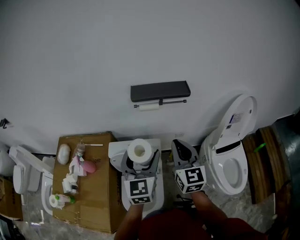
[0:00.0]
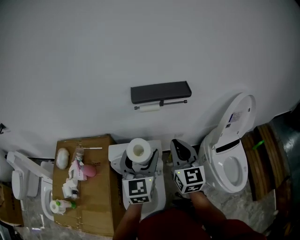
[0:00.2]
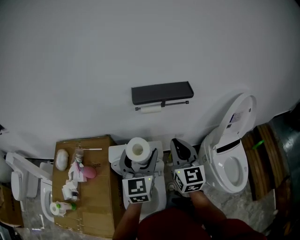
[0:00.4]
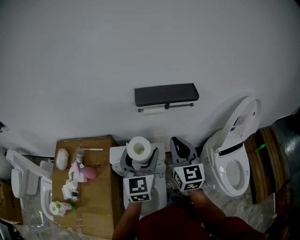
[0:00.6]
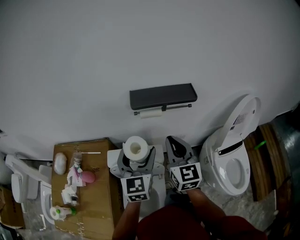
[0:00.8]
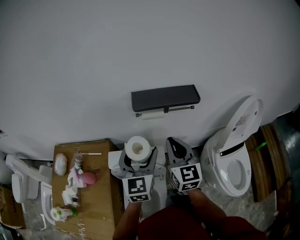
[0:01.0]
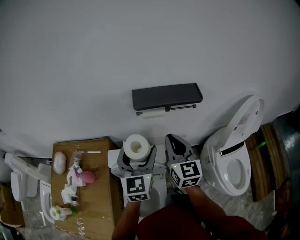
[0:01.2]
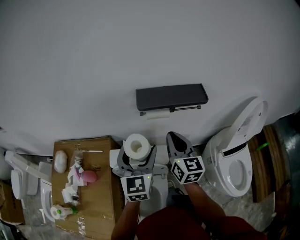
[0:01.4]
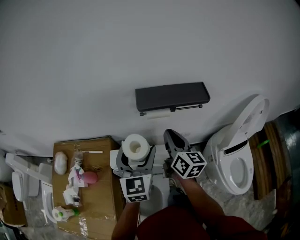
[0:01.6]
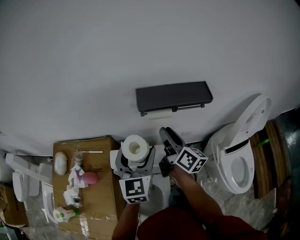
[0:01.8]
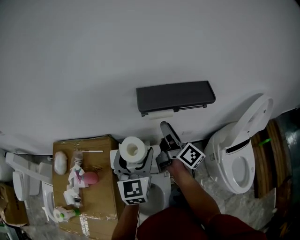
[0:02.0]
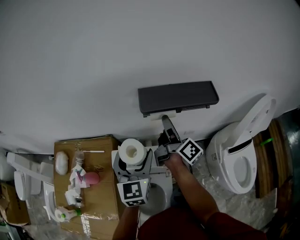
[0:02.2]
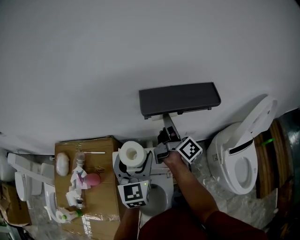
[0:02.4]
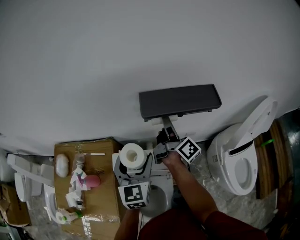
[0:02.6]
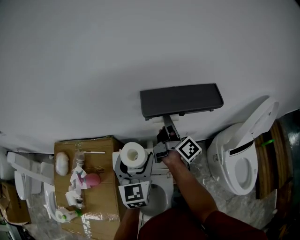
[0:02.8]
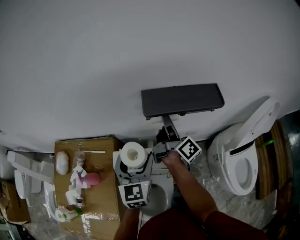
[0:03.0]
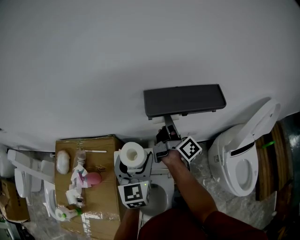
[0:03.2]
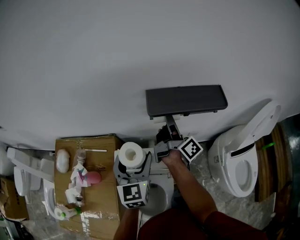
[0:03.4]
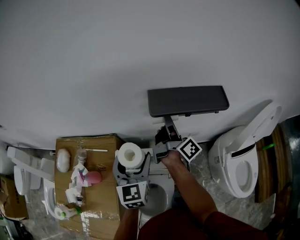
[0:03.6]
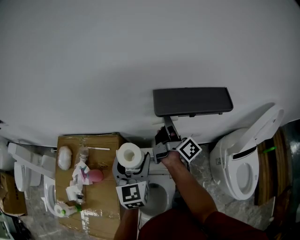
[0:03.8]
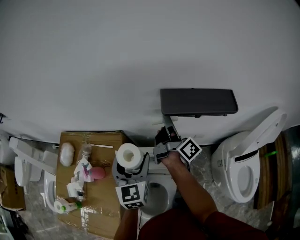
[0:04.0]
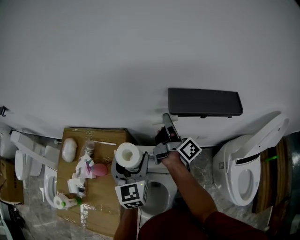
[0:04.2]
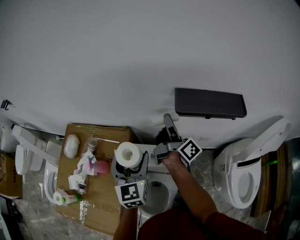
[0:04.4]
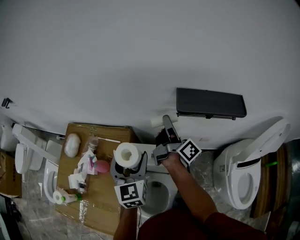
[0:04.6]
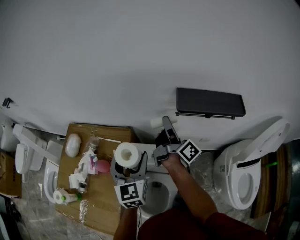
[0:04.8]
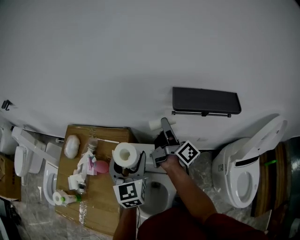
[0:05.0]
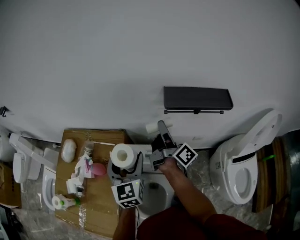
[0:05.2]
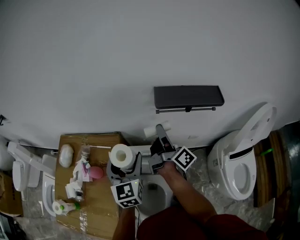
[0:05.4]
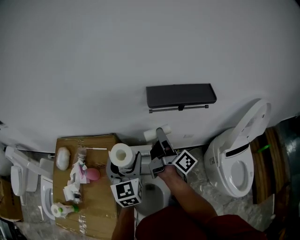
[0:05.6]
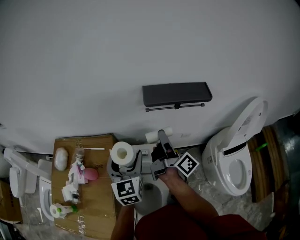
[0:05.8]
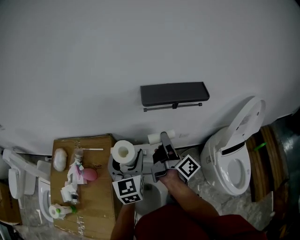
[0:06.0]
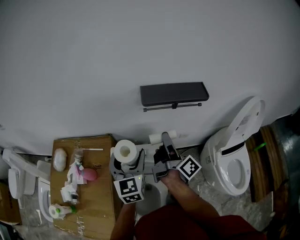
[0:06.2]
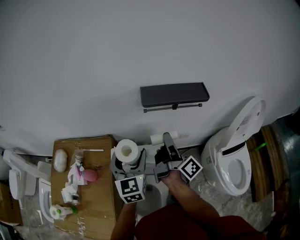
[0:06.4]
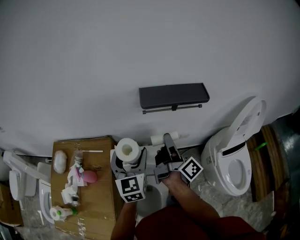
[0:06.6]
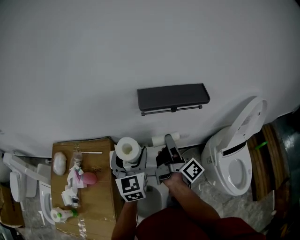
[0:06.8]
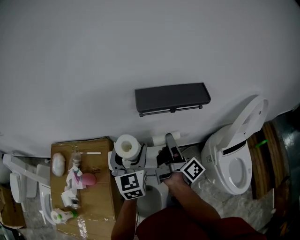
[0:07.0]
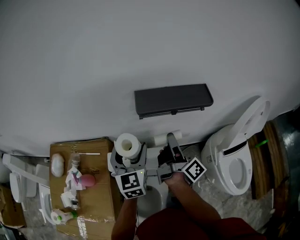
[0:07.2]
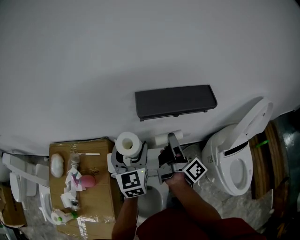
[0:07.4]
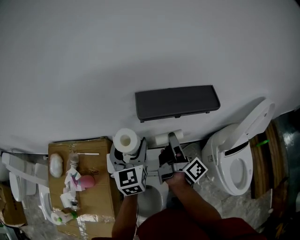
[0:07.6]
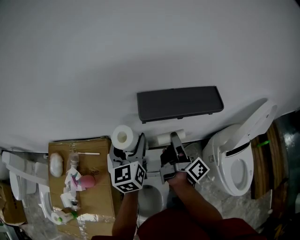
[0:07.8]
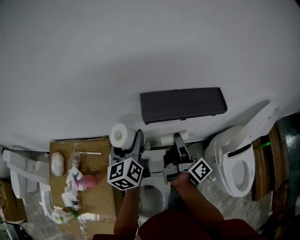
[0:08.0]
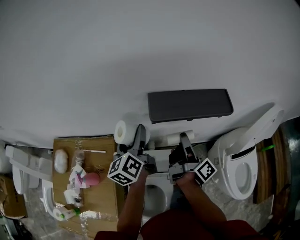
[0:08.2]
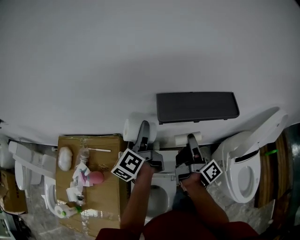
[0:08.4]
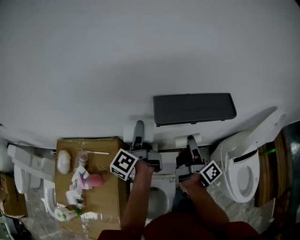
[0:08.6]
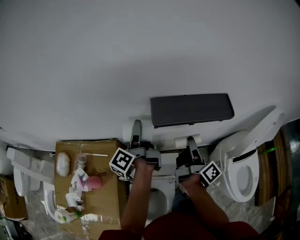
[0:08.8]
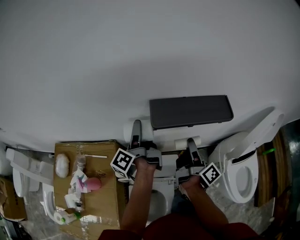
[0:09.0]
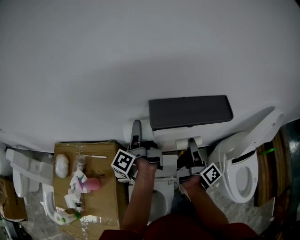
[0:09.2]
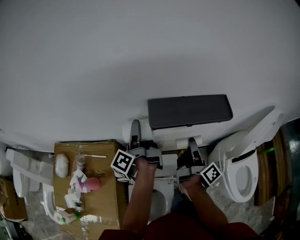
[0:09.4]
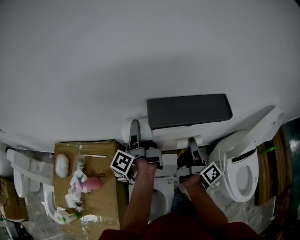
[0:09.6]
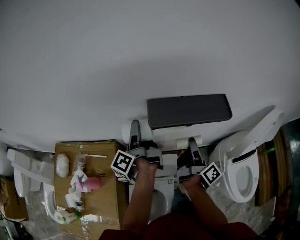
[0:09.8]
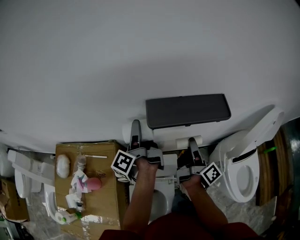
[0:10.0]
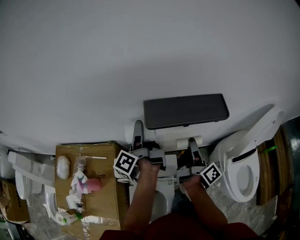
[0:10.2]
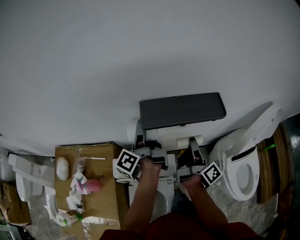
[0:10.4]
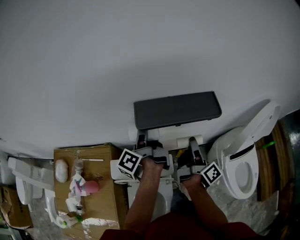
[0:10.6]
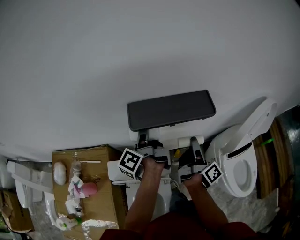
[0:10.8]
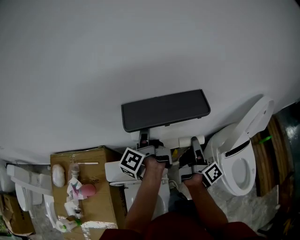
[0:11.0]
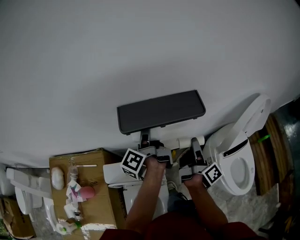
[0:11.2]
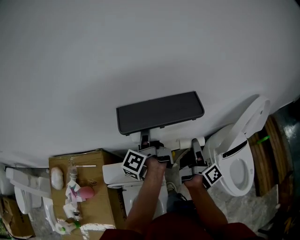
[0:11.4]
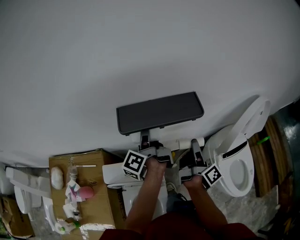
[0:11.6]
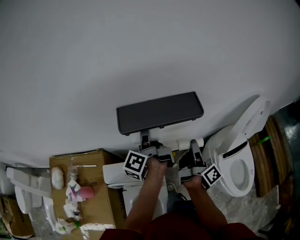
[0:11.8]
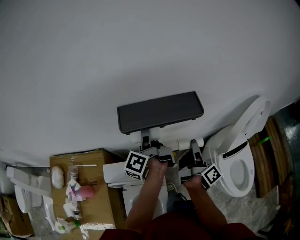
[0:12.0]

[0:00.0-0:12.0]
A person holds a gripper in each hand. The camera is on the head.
0:00.0 to 0:01.6: The left gripper shifts approximately 15 cm forward and to the left. Meanwhile the right gripper is displaced forward and downward by roughly 20 cm, and changes its angle by some 30 degrees.
0:01.6 to 0:03.0: The left gripper changes place by approximately 5 cm, while the right gripper heads forward, covering roughly 10 cm, twists roughly 40 degrees clockwise, seen from behind, and opens its fingers.
0:03.0 to 0:04.4: The two grippers go approximately 10 cm to the left.
0:04.4 to 0:06.0: The left gripper goes approximately 5 cm to the right, while the right gripper moves backward and to the right, about 15 cm.
0:06.0 to 0:07.6: The right gripper is displaced forward by about 10 cm. The left gripper goes roughly 15 cm forward.
0:07.6 to 0:09.0: The left gripper heads forward, covering some 10 cm, and rotates around the line of its fingers by approximately 90 degrees, counterclockwise from behind.
0:09.0 to 0:10.4: The left gripper ends up roughly 5 cm from where it was.
0:10.4 to 0:12.0: The two grippers go roughly 10 cm to the right.

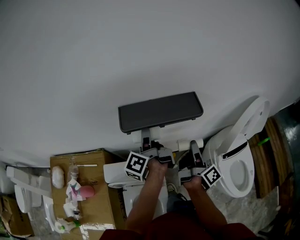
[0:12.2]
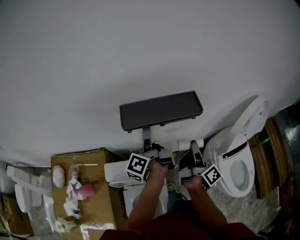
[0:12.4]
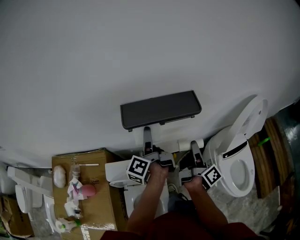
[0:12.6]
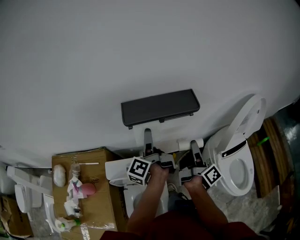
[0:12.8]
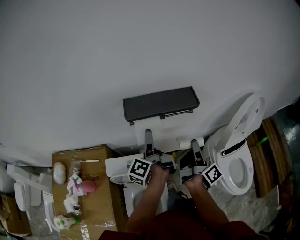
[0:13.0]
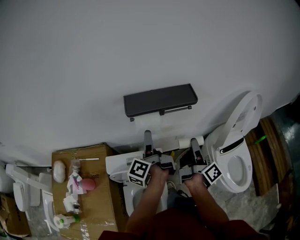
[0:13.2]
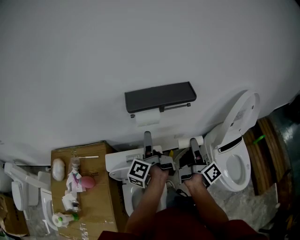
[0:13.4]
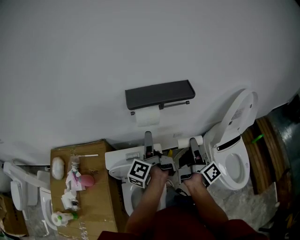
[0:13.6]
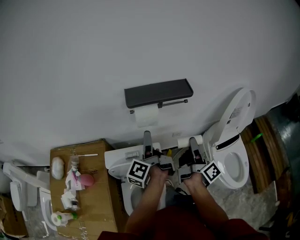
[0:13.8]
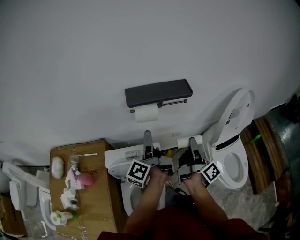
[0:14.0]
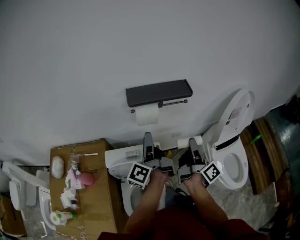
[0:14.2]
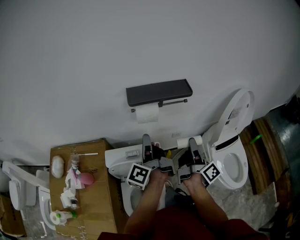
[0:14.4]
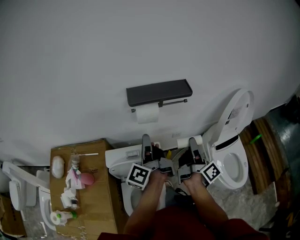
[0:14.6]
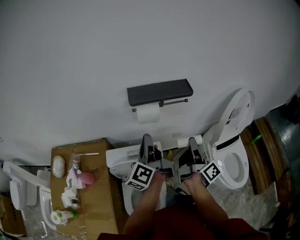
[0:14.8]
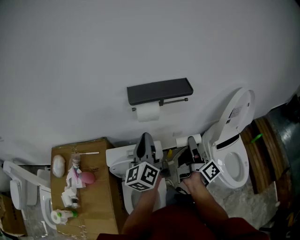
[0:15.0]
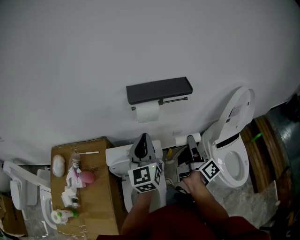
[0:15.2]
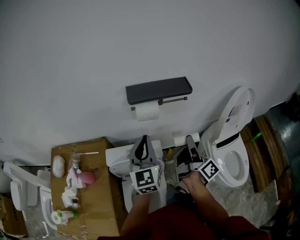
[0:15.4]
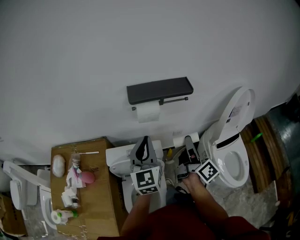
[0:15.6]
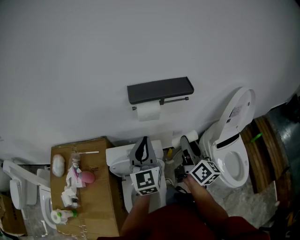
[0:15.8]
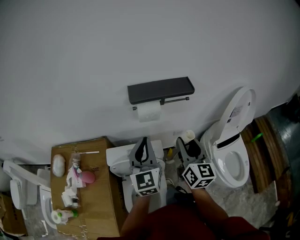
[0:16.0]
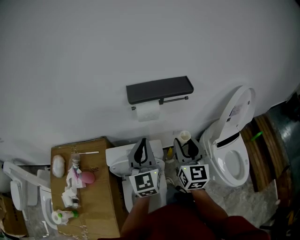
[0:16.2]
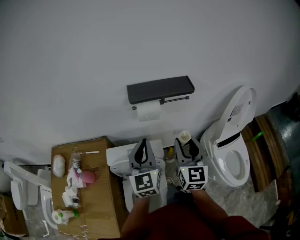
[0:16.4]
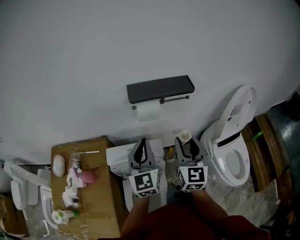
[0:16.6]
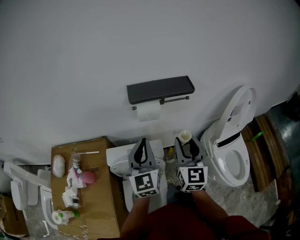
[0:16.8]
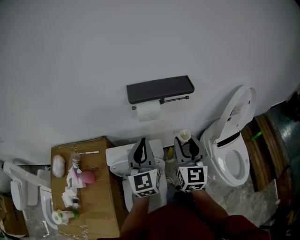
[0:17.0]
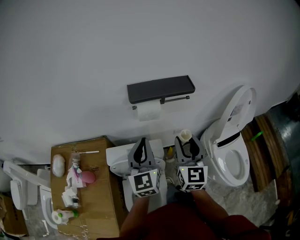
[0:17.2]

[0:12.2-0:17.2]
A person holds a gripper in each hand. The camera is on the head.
0:12.2 to 0:13.8: Both grippers travel together backward, about 15 cm.
0:13.8 to 0:15.6: The left gripper heads upward and backward, covering about 10 cm, rotates around the line of its fingers by approximately 80 degrees, clockwise from behind, and closes its fingers.
0:15.6 to 0:17.2: The right gripper changes place by about 5 cm, and rotates around the line of its fingers by about 70 degrees, counterclockwise from behind.

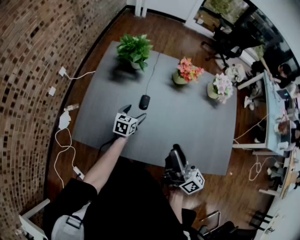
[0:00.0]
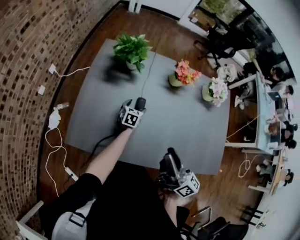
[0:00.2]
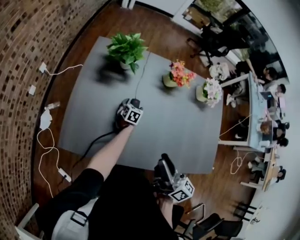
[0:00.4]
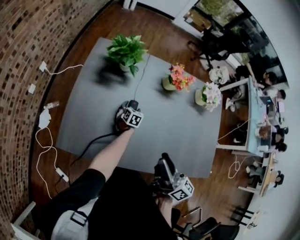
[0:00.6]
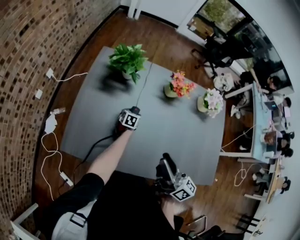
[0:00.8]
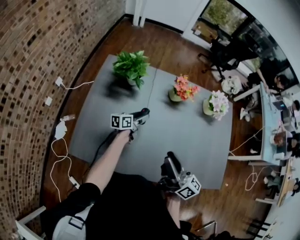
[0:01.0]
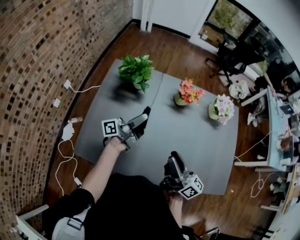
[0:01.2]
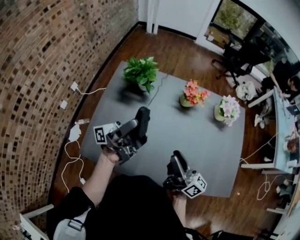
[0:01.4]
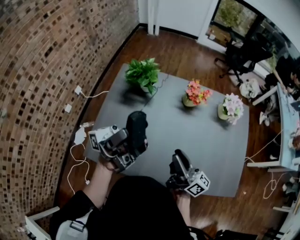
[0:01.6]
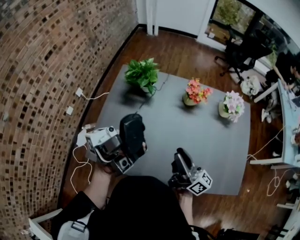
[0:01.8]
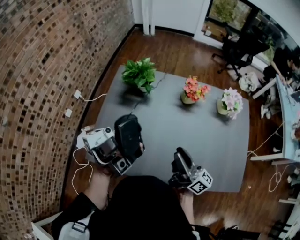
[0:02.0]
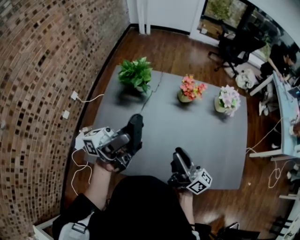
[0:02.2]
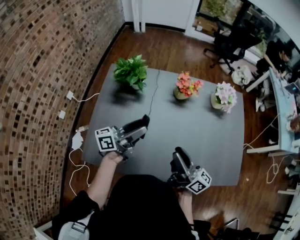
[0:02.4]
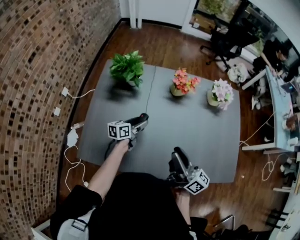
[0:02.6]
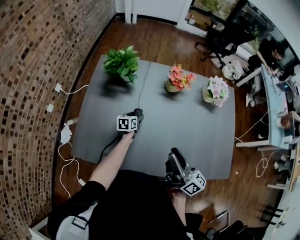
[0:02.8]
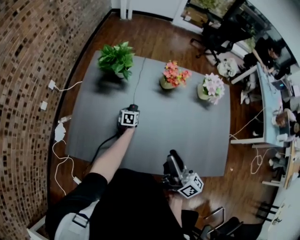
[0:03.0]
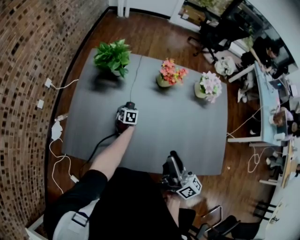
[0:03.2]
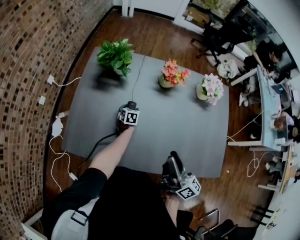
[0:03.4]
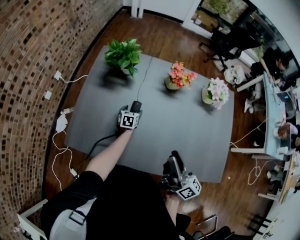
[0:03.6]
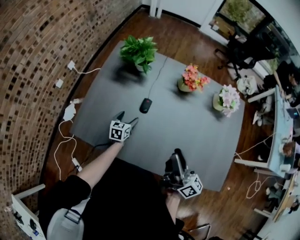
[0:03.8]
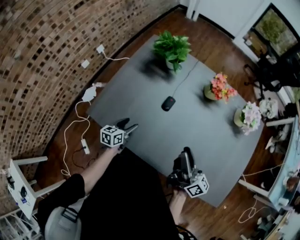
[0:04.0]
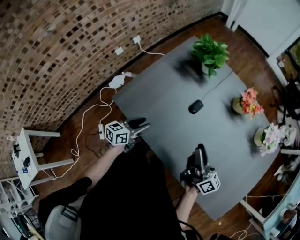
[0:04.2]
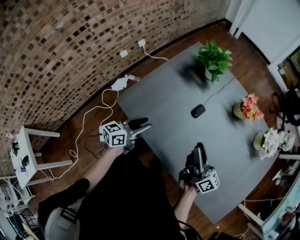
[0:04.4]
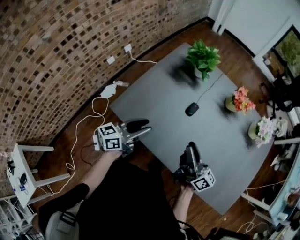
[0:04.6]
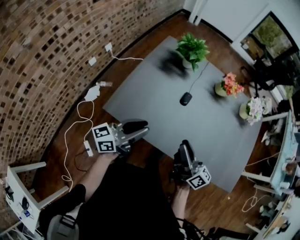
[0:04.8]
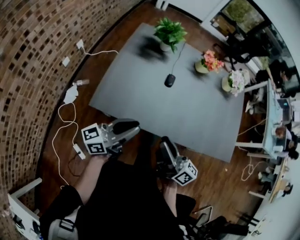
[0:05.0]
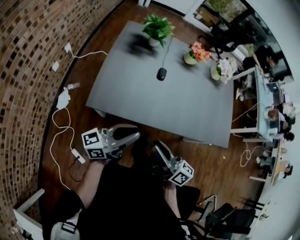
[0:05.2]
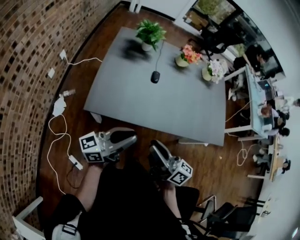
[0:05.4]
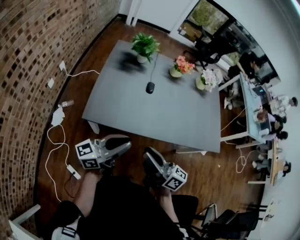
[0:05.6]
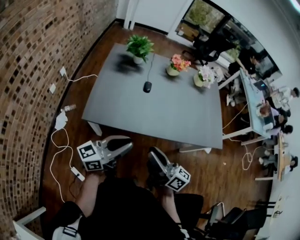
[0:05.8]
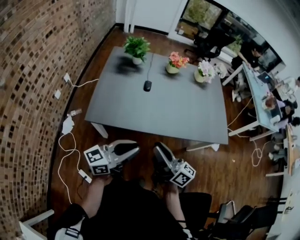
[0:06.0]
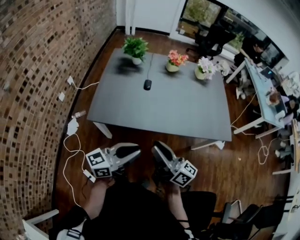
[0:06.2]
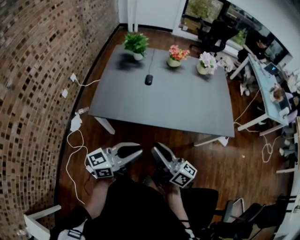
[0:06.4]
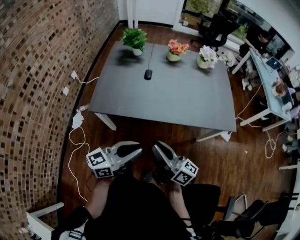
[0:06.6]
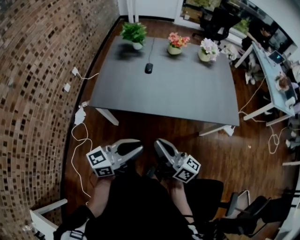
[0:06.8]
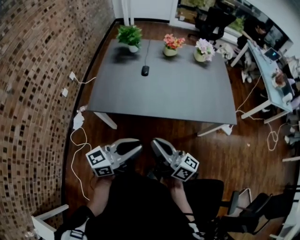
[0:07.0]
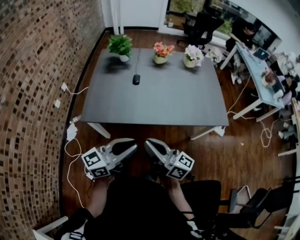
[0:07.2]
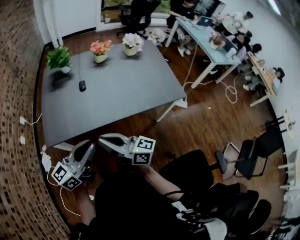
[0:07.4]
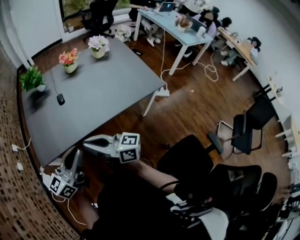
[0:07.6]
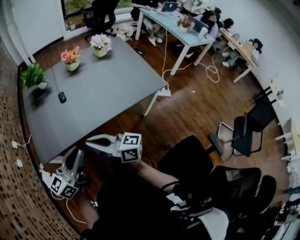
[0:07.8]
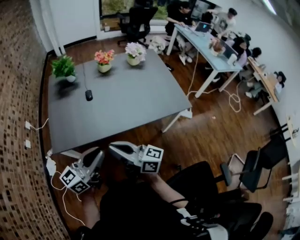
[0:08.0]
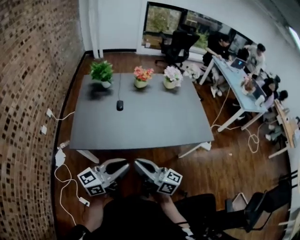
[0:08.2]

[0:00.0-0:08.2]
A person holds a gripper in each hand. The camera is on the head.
0:00.0 to 0:01.6: The right gripper goes some 10 cm forward. The left gripper goes about 40 cm upward, and tilts its fingers about 90 degrees upward.
0:01.6 to 0:03.2: The left gripper is displaced downward by some 50 cm, and angles its fingers downward, by roughly 110 degrees; the right gripper shifts some 5 cm to the right.
0:03.2 to 0:05.0: The right gripper heads to the left and backward, covering some 30 cm. The left gripper shifts roughly 60 cm backward, upward and to the left, tilts its fingers about 70 degrees upward, and closes its fingers.
0:05.0 to 0:06.6: Both grippers travel together backward and to the right, about 25 cm.
0:06.6 to 0:08.2: The left gripper ends up about 5 cm from where it was.
